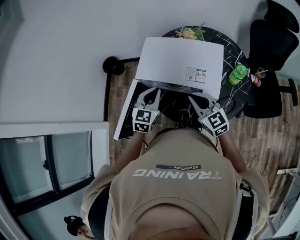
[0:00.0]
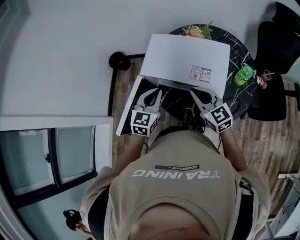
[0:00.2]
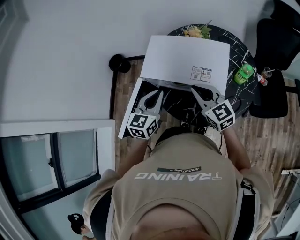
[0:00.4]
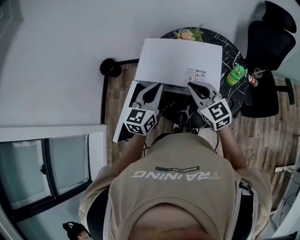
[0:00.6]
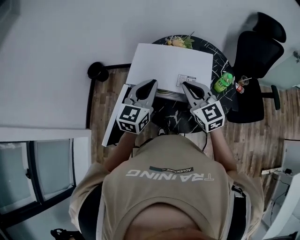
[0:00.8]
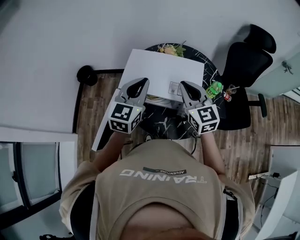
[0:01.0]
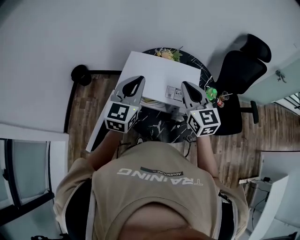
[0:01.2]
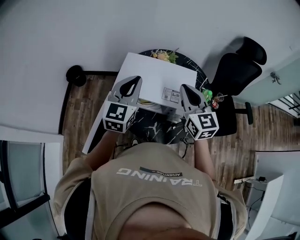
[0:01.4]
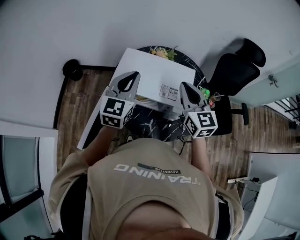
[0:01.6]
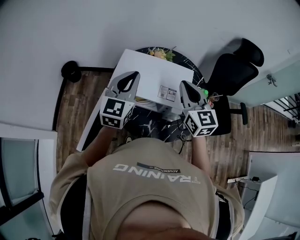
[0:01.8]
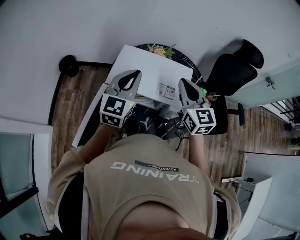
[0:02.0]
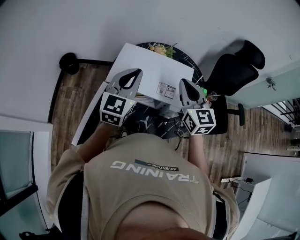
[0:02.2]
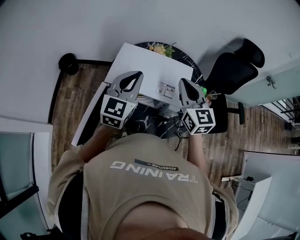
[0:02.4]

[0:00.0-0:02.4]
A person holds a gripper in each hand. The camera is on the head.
0:00.0 to 0:01.2: The left gripper shifts approximately 15 cm upward, and rotates about 20 degrees; the right gripper is displaced upward and forward by about 15 cm, and changes its angle by about 20 degrees.
0:01.2 to 0:02.4: The grippers make only small movements.

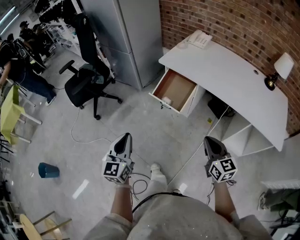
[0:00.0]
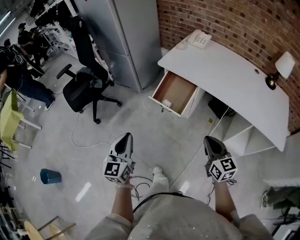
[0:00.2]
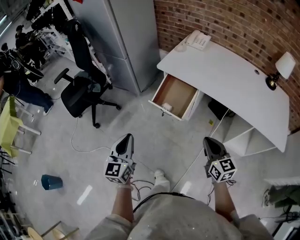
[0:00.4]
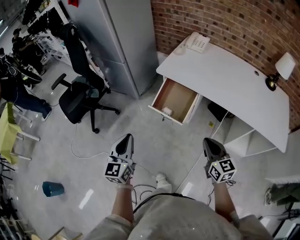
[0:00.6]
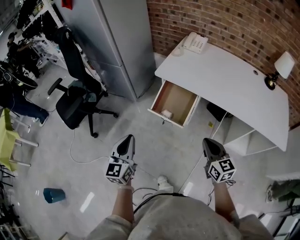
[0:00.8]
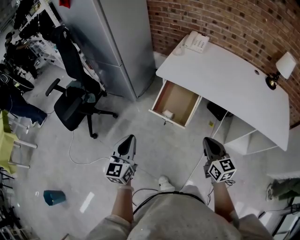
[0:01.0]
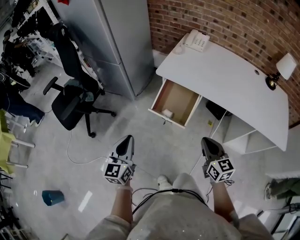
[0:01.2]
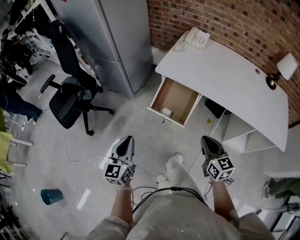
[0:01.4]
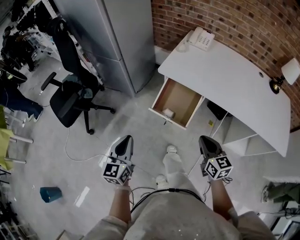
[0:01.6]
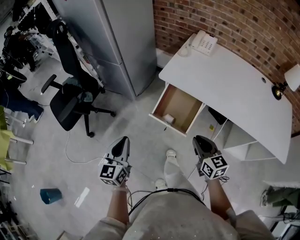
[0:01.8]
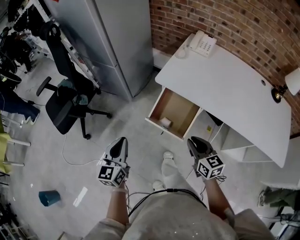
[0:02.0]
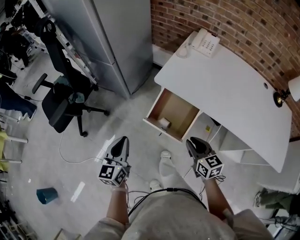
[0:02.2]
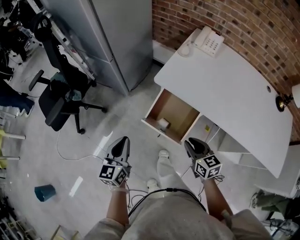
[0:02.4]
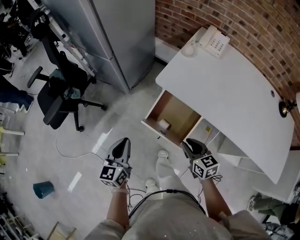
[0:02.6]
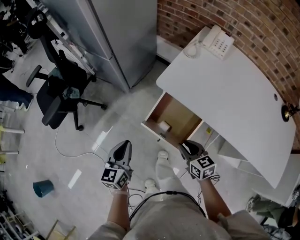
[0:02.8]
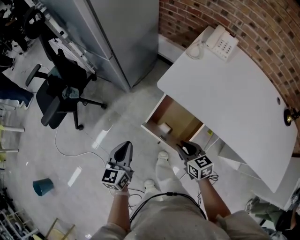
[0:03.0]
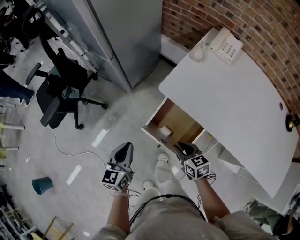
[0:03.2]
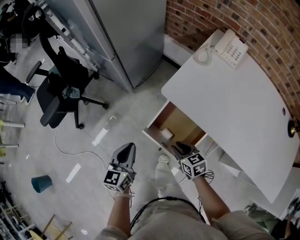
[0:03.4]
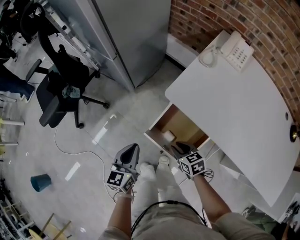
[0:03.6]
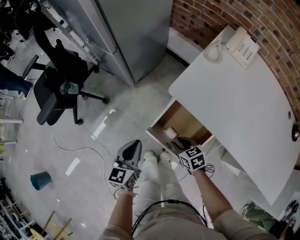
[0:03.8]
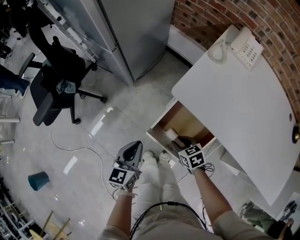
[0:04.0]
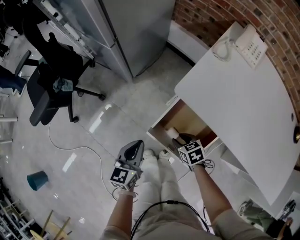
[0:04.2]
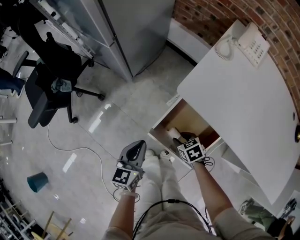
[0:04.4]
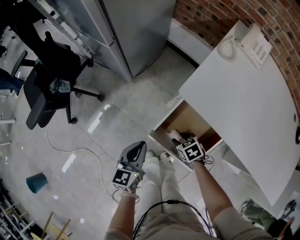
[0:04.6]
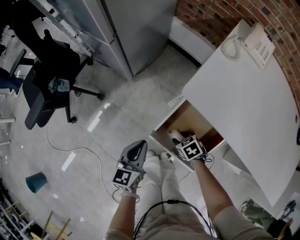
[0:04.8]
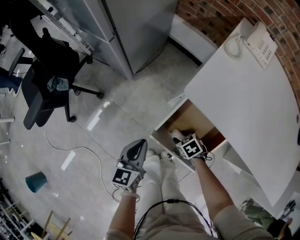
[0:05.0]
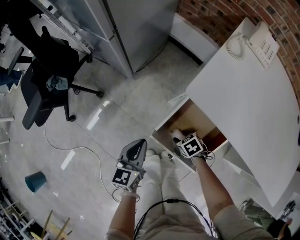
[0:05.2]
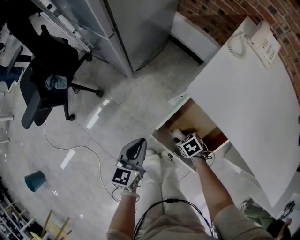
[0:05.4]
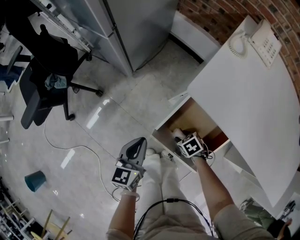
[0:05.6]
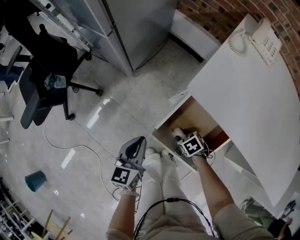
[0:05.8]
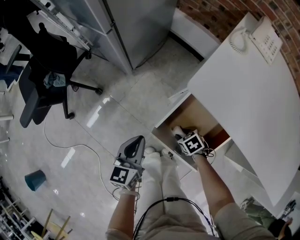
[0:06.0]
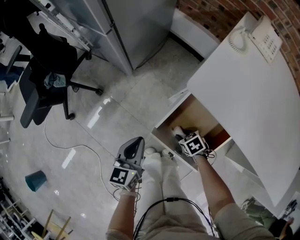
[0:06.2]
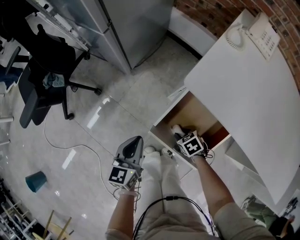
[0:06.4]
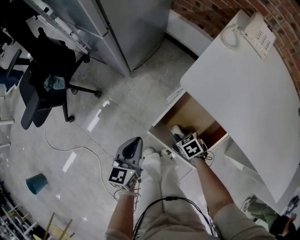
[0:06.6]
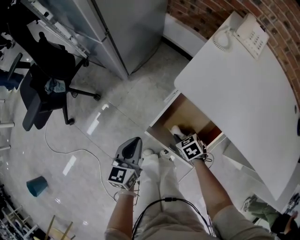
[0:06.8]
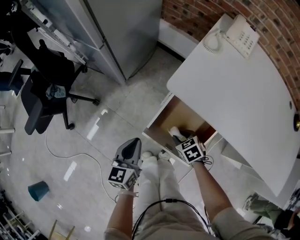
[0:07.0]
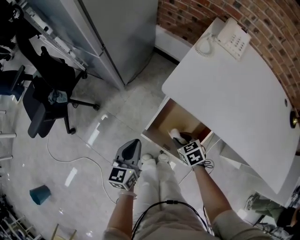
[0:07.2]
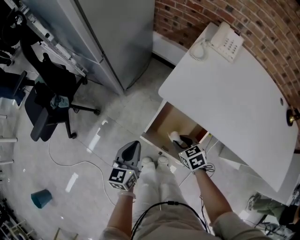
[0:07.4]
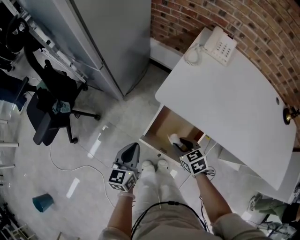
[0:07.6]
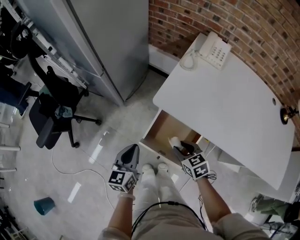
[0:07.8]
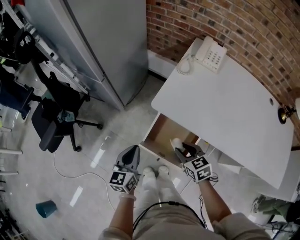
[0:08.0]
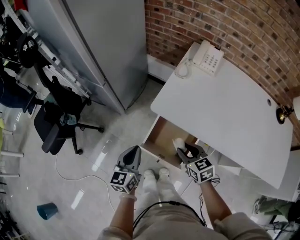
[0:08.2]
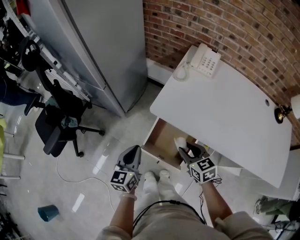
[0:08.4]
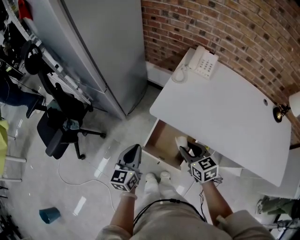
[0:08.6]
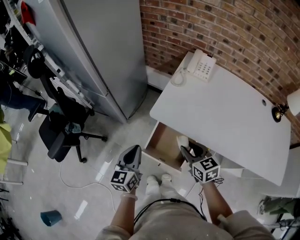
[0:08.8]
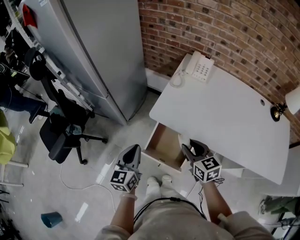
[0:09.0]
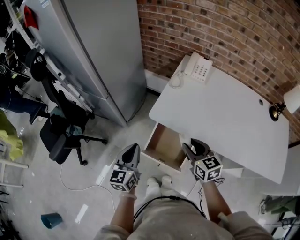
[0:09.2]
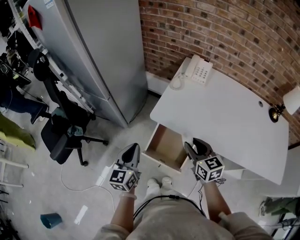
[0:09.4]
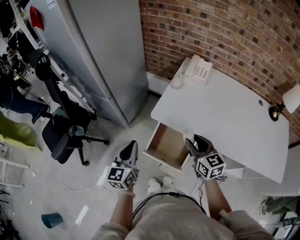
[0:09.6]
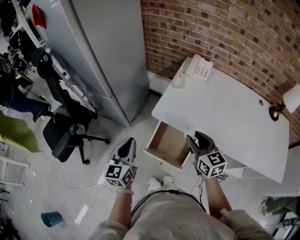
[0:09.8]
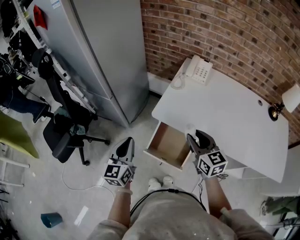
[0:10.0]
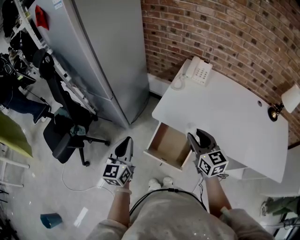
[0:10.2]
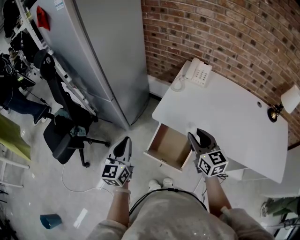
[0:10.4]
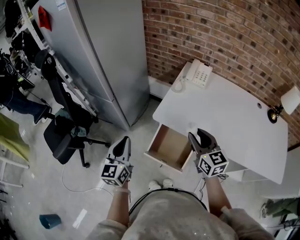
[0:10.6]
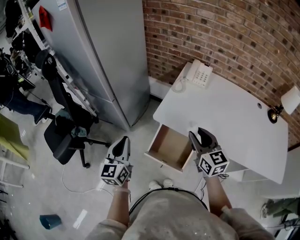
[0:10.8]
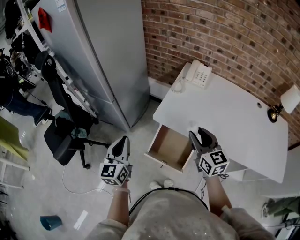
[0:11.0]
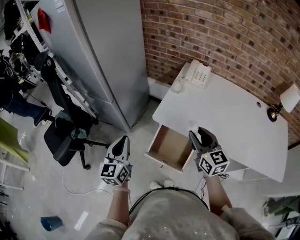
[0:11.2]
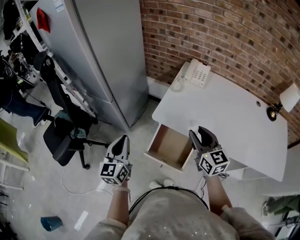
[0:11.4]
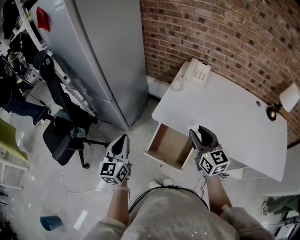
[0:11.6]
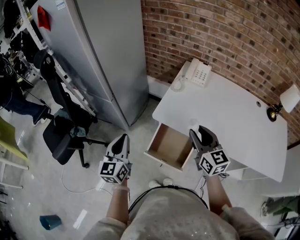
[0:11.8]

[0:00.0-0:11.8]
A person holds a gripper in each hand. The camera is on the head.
0:00.0 to 0:01.4: The left gripper moves forward, roughly 20 cm; the right gripper travels forward and to the left by roughly 15 cm.
0:01.4 to 0:03.0: The grippers both shift forward and downward by approximately 25 cm. The right gripper swivels some 30 degrees, and opens its fingers.
0:03.0 to 0:04.4: The left gripper goes some 15 cm downward and forward; the right gripper heads downward and forward, covering about 20 cm, and swivels roughly 30 degrees.
0:04.4 to 0:06.0: The right gripper moves downward, some 10 cm. Meanwhile the left gripper ends up about 5 cm from where it was.
0:06.0 to 0:07.4: The right gripper travels upward by about 15 cm, and rotates some 20 degrees. Meanwhile the left gripper heads upward, covering about 10 cm.
0:07.4 to 0:08.8: The right gripper shifts roughly 20 cm upward, and swivels roughly 30 degrees, while the left gripper shifts about 15 cm upward.
0:08.8 to 0:10.4: The right gripper travels upward by about 10 cm; the left gripper moves upward and to the left, approximately 10 cm.
0:10.4 to 0:11.8: The grippers stay close to where they were, moving slightly.

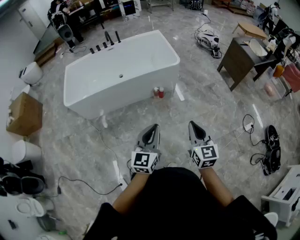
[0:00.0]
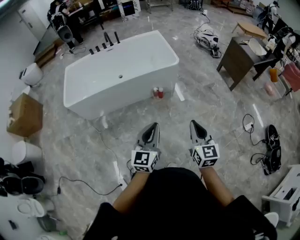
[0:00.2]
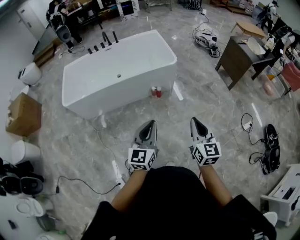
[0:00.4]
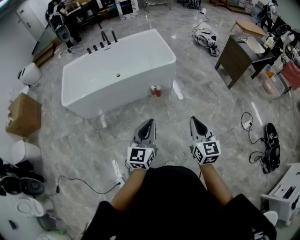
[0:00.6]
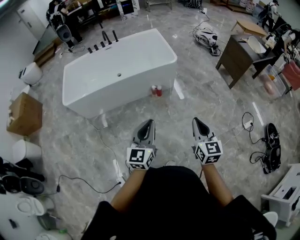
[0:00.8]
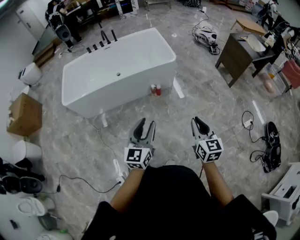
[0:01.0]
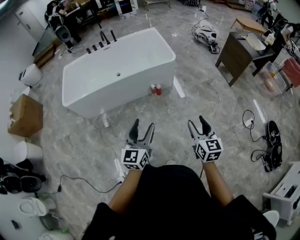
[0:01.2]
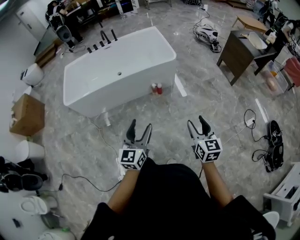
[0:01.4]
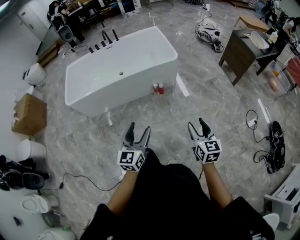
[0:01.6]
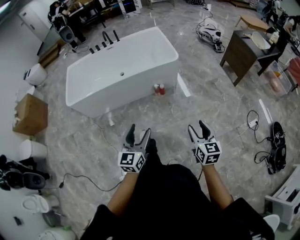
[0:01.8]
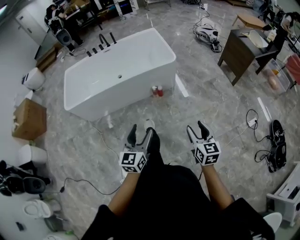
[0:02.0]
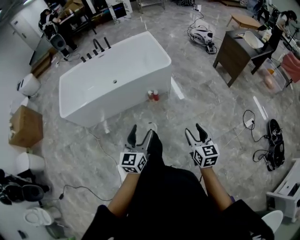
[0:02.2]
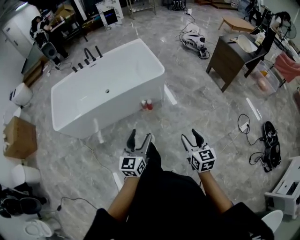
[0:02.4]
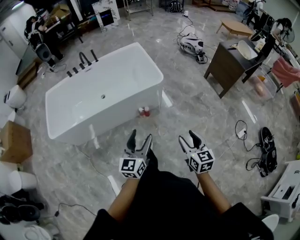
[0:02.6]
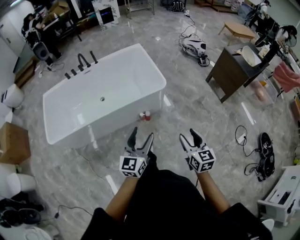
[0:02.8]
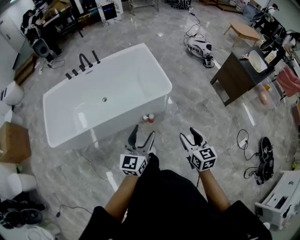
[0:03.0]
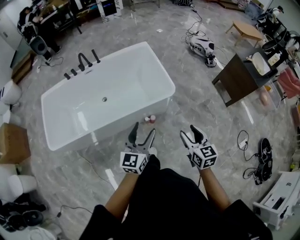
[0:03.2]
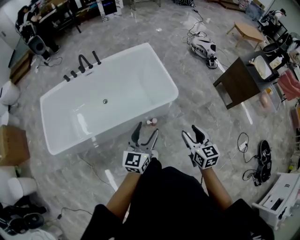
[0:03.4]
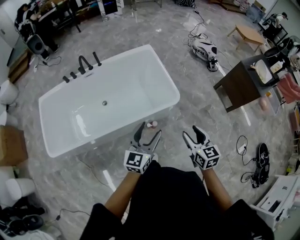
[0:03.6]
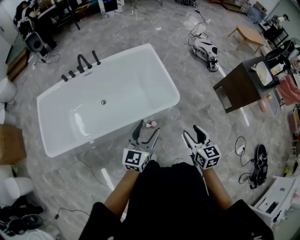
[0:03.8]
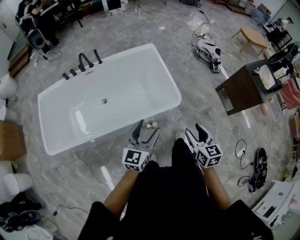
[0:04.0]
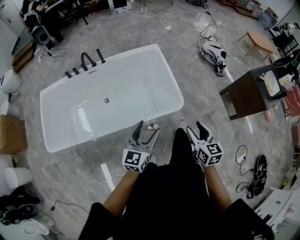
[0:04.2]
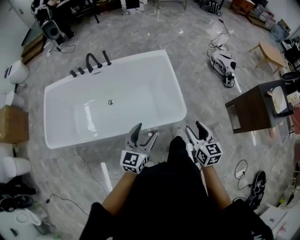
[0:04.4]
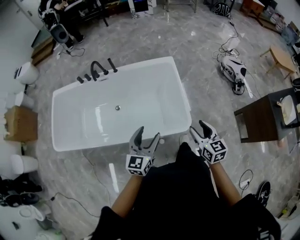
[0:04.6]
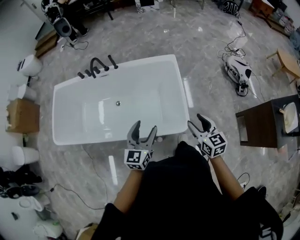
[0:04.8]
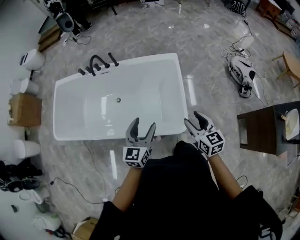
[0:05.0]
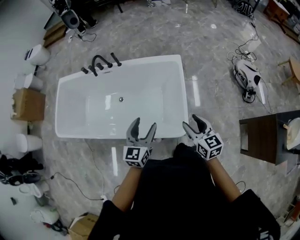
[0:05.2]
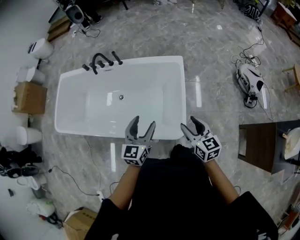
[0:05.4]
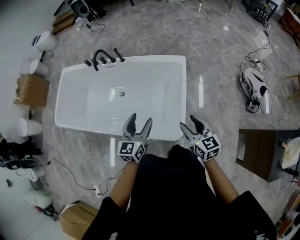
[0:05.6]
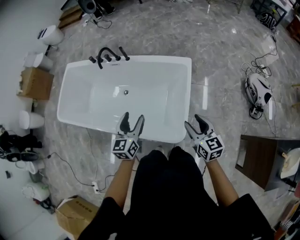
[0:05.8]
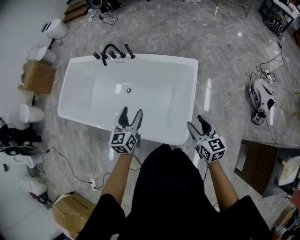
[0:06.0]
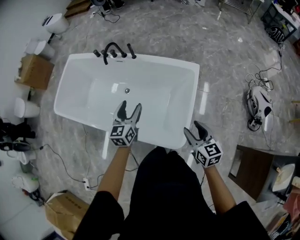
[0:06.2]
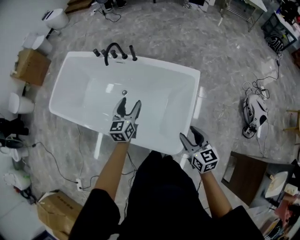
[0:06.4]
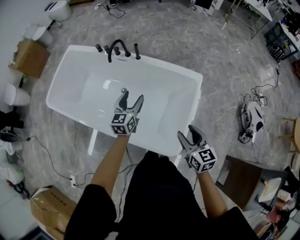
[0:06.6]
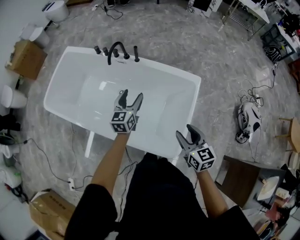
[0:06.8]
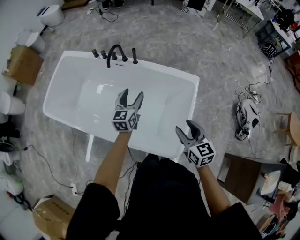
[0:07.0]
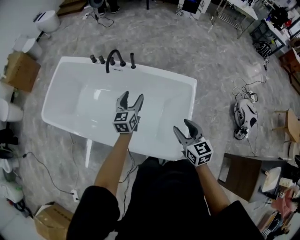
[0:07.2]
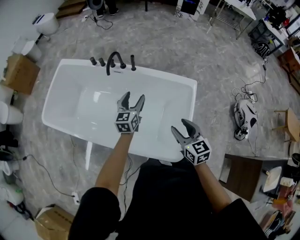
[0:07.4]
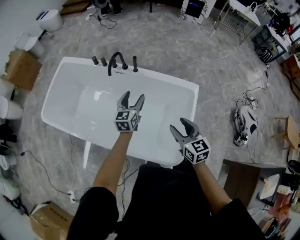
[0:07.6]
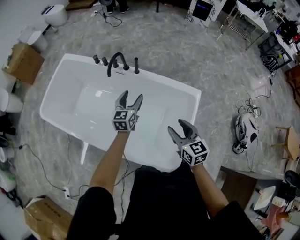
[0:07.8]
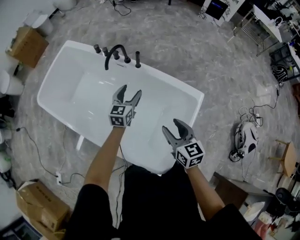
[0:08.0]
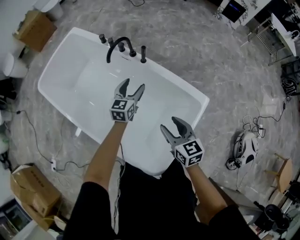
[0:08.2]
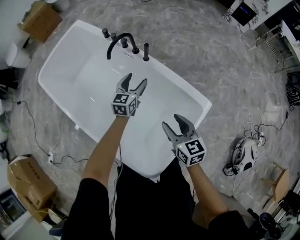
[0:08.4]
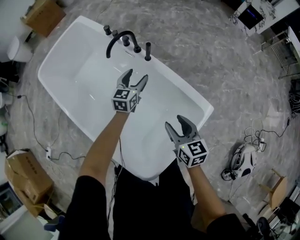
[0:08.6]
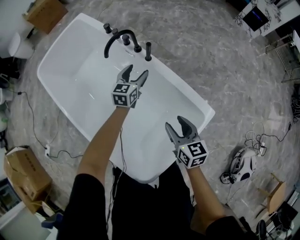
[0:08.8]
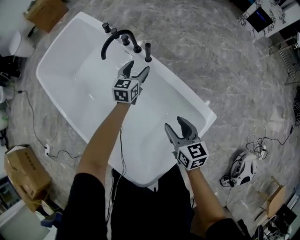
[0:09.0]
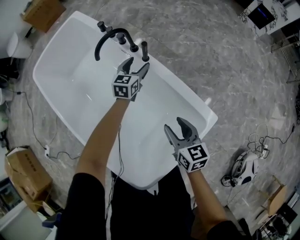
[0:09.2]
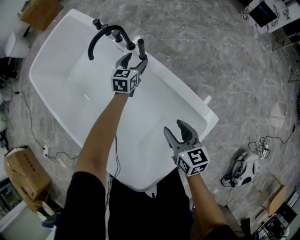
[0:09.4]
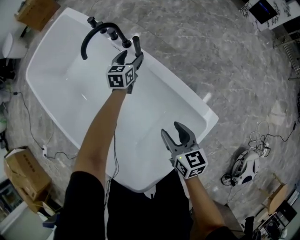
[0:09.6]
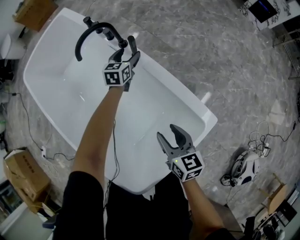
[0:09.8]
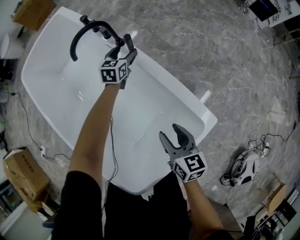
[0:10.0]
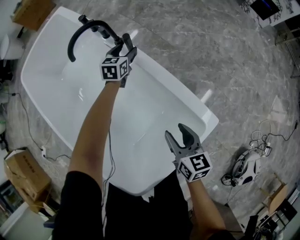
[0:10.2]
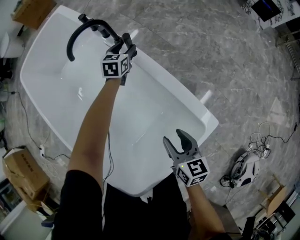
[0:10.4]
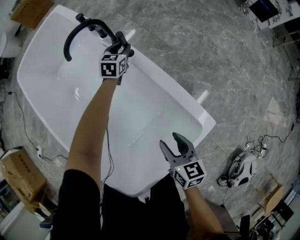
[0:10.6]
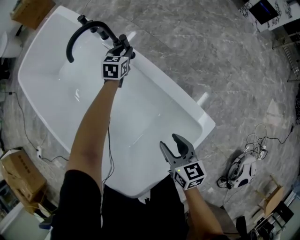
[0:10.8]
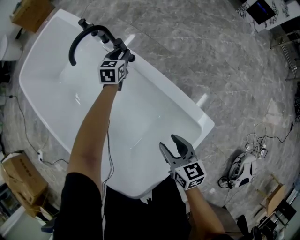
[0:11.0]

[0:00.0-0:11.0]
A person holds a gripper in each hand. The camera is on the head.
0:00.0 to 0:01.6: The right gripper is displaced to the right and downward by about 10 cm, and opens up; the left gripper opens up.
0:01.6 to 0:03.2: The two grippers travel together, forward, about 50 cm.
0:03.2 to 0:04.8: The grippers both shift forward by about 35 cm. The right gripper turns by roughly 20 degrees; the left gripper changes its angle by roughly 20 degrees.
0:04.8 to 0:06.2: Both grippers travel together forward, about 20 cm. The left gripper changes its angle by some 30 degrees.
0:06.2 to 0:07.8: The right gripper travels forward and to the left by some 20 cm; the left gripper travels forward by about 20 cm.
0:07.8 to 0:09.4: The left gripper moves forward and downward, about 35 cm. Meanwhile the right gripper travels downward, forward and to the right by roughly 30 cm, and swivels roughly 20 degrees.
0:09.4 to 0:11.0: The left gripper shifts some 10 cm forward and downward, and closes, while the right gripper moves some 5 cm.
